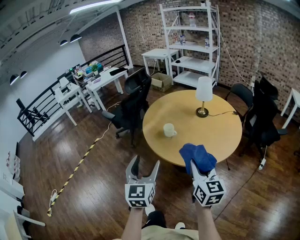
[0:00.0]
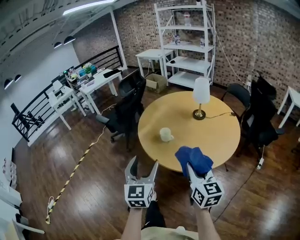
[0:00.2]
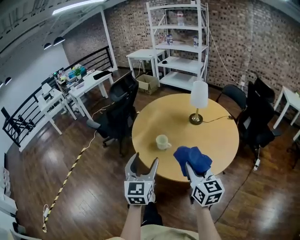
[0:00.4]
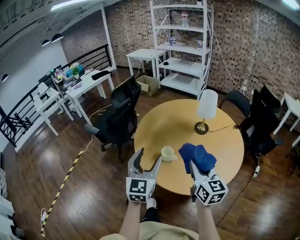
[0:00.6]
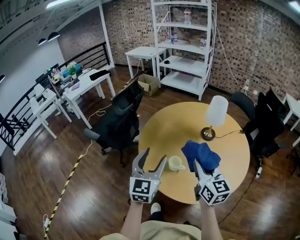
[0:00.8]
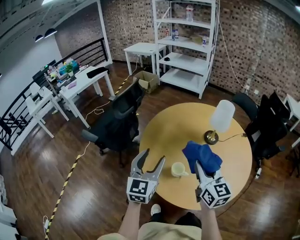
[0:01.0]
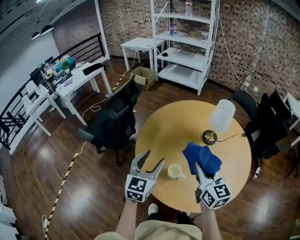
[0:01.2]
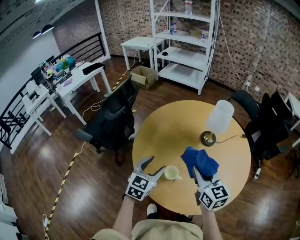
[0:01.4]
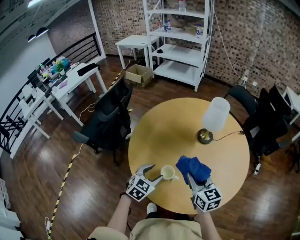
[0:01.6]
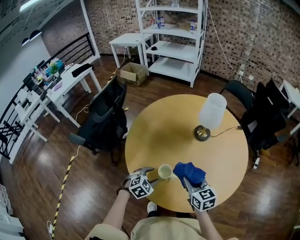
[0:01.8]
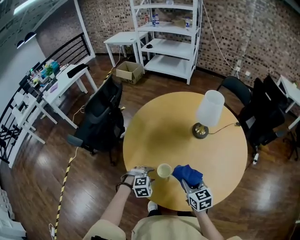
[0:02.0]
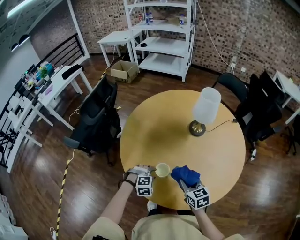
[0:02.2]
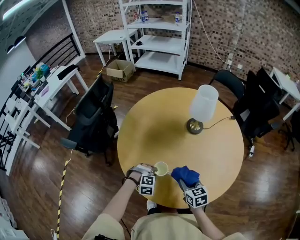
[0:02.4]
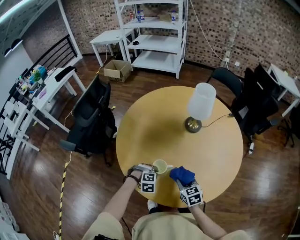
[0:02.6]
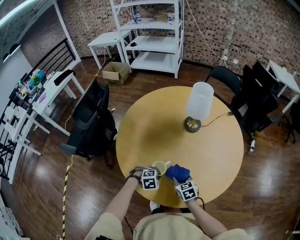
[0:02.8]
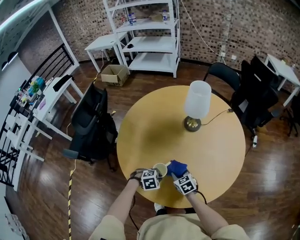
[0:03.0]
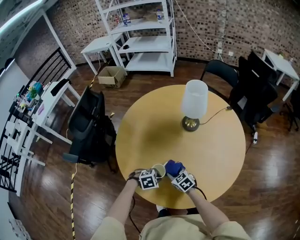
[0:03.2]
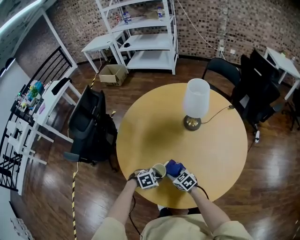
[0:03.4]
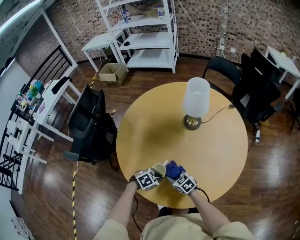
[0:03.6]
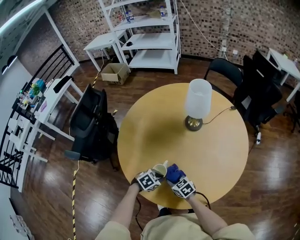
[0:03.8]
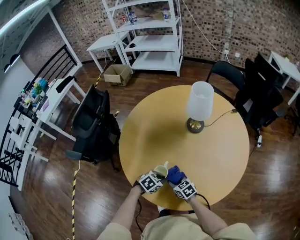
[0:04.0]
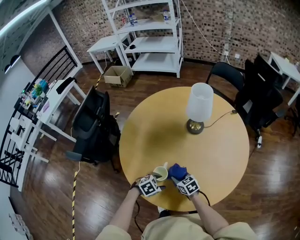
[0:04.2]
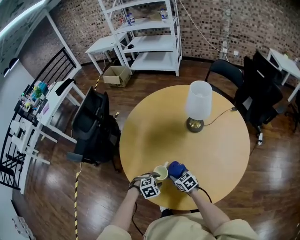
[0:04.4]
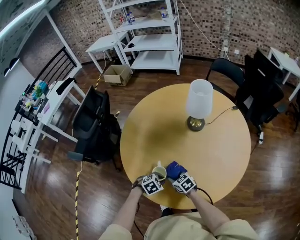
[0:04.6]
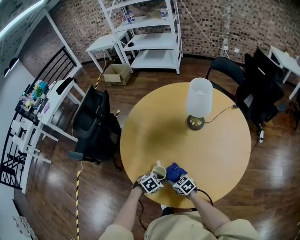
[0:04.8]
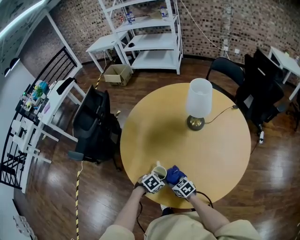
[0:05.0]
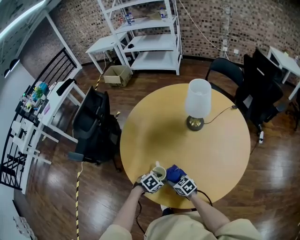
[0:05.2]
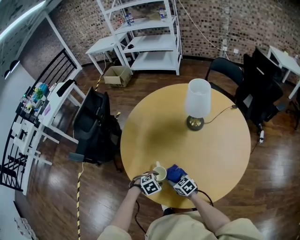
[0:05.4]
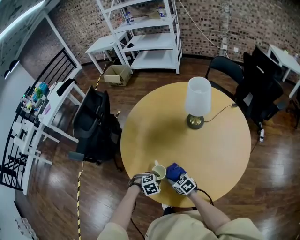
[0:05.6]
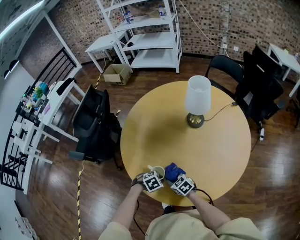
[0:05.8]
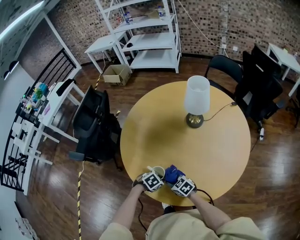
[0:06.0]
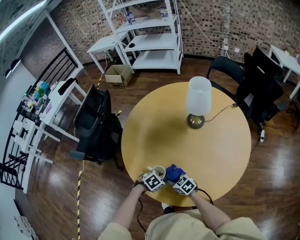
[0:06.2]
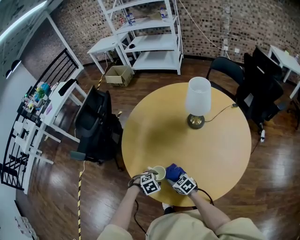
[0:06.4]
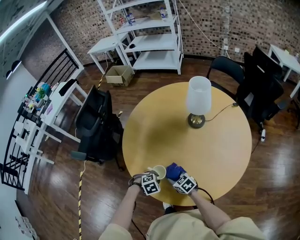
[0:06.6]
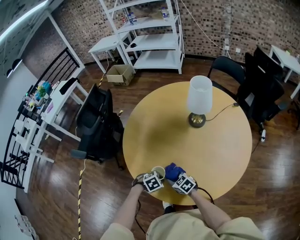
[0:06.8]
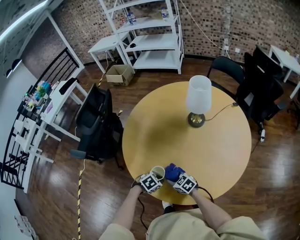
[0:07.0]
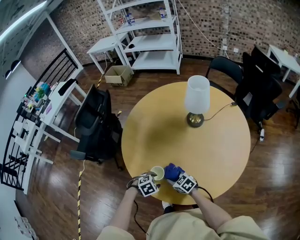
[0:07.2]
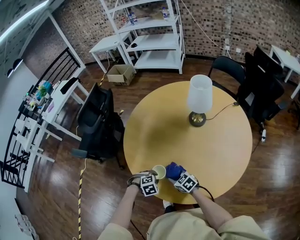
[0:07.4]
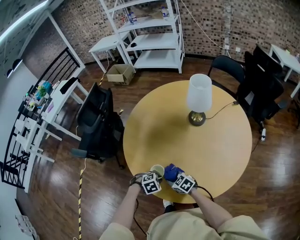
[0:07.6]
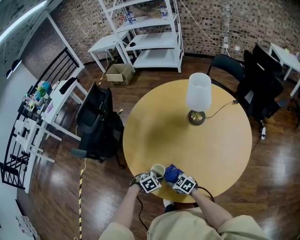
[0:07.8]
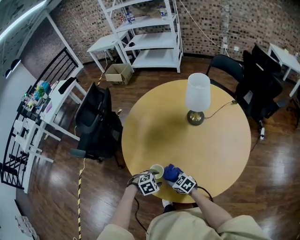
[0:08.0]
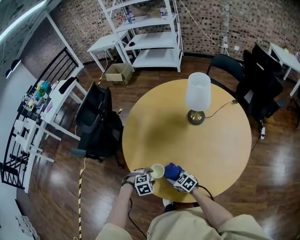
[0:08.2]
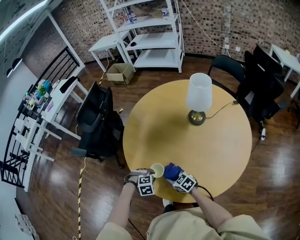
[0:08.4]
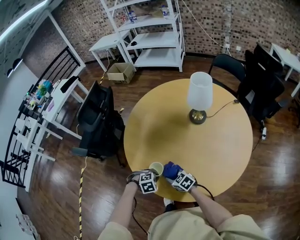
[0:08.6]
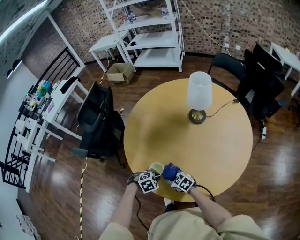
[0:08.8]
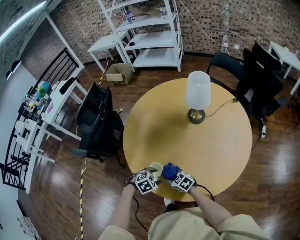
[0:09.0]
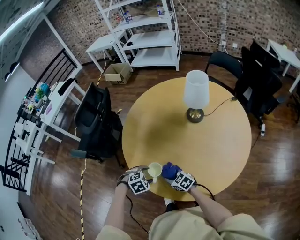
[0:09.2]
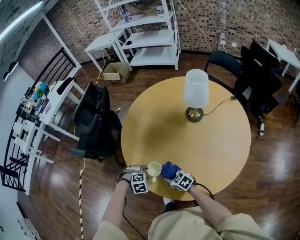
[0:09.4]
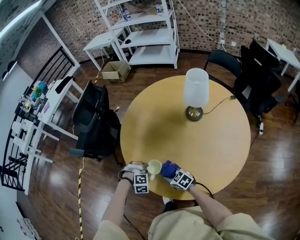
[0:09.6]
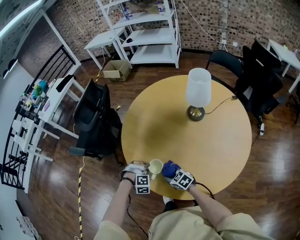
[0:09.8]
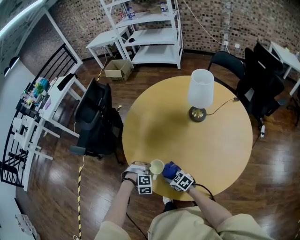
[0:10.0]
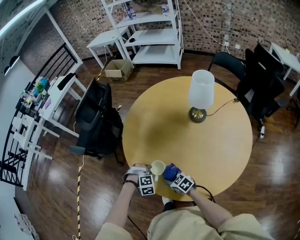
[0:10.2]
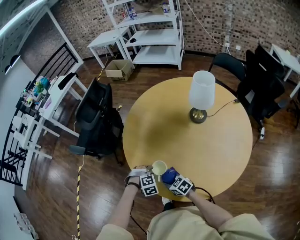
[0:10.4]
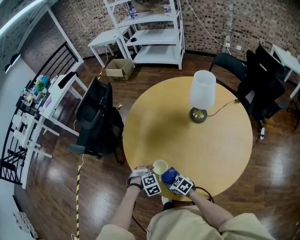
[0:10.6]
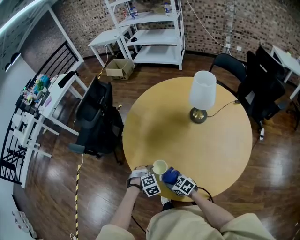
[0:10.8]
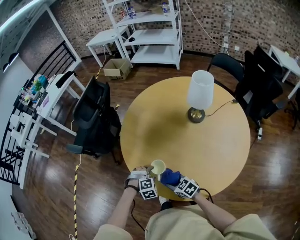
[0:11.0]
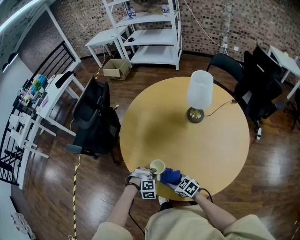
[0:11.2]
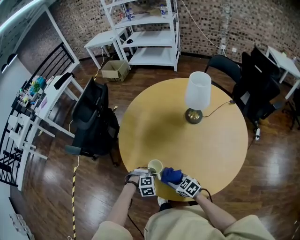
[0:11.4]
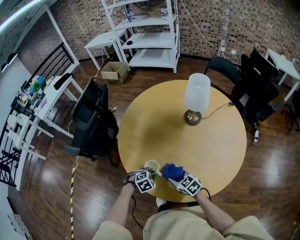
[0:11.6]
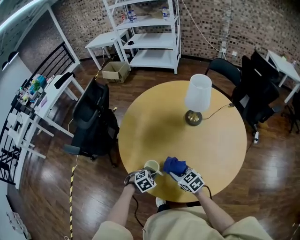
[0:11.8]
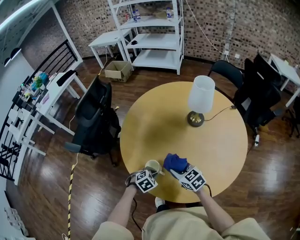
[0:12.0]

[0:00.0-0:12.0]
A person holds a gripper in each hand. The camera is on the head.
0:00.0 to 0:01.6: The left gripper goes approximately 40 cm forward and downward, and tilts its fingers roughly 30 degrees downward. Meanwhile the right gripper travels forward by approximately 35 cm.
0:01.6 to 0:03.0: The left gripper shifts about 15 cm downward, angles its fingers downward, by some 30 degrees, and closes; the right gripper moves downward, roughly 25 cm, and rotates about 30 degrees.
0:03.0 to 0:04.4: The left gripper opens its fingers.
0:04.4 to 0:06.0: The right gripper shifts by about 5 cm. The left gripper turns by about 20 degrees, and closes.
0:06.0 to 0:07.6: The left gripper rotates approximately 20 degrees, and opens, then closes once more.
0:07.6 to 0:09.0: The left gripper opens its fingers.
0:09.0 to 0:10.4: The left gripper changes place by about 5 cm, rotates some 30 degrees, and closes up.
0:10.4 to 0:12.0: The right gripper travels upward by about 10 cm; the left gripper changes its angle by about 30 degrees, and opens and closes again.

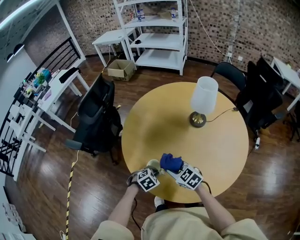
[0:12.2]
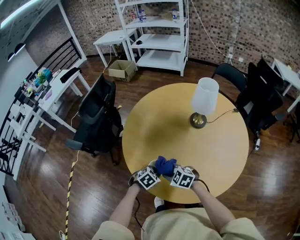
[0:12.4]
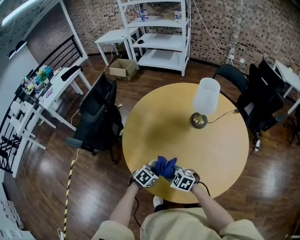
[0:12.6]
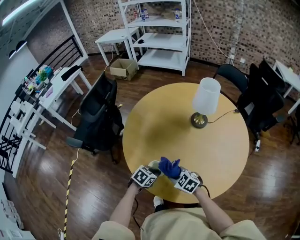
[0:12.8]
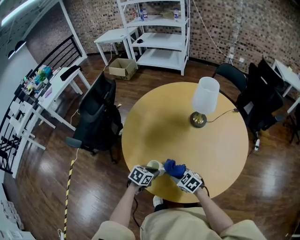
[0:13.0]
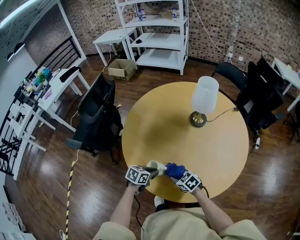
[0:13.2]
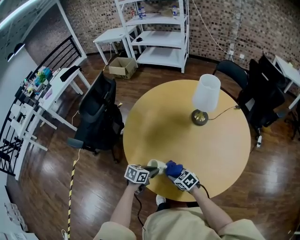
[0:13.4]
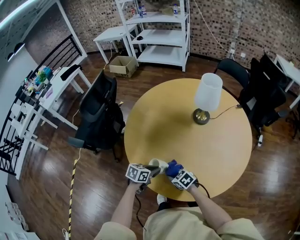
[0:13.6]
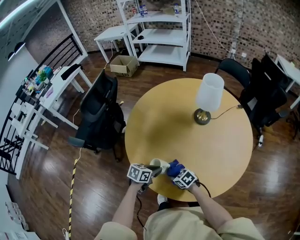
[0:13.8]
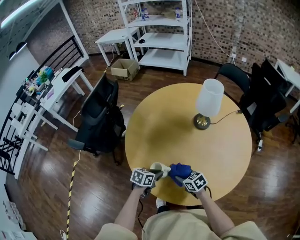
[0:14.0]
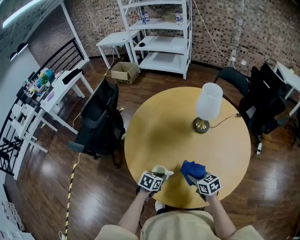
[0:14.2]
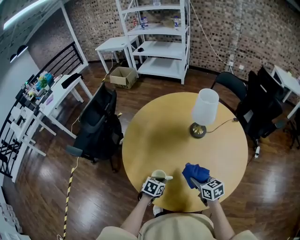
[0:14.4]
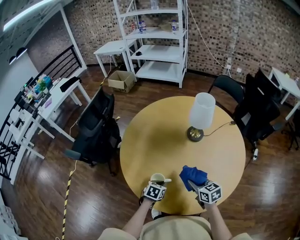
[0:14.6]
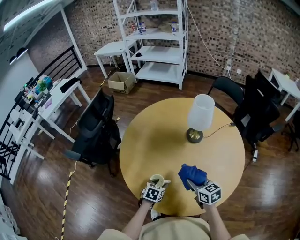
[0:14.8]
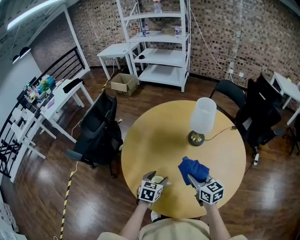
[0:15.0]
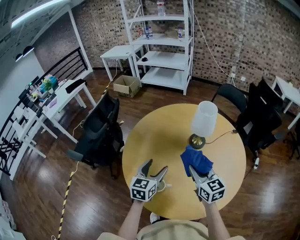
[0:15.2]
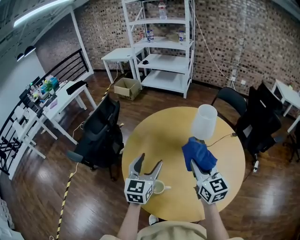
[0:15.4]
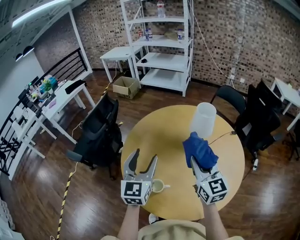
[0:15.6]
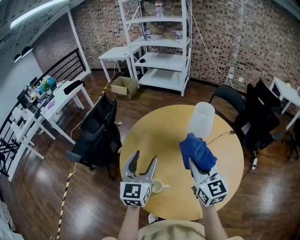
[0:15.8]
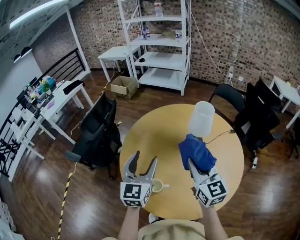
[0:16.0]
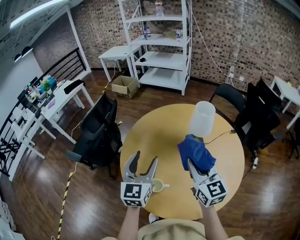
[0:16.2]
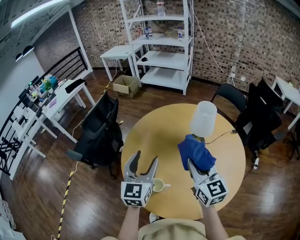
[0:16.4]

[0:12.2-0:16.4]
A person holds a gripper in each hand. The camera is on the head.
0:12.2 to 0:13.6: The right gripper heads downward, covering about 10 cm. The left gripper rotates around the line of its fingers by roughly 40 degrees, counterclockwise from behind.
0:13.6 to 0:15.0: The left gripper goes some 10 cm upward, swivels some 30 degrees, and opens up, while the right gripper shifts some 20 cm upward, and swivels approximately 40 degrees.
0:15.0 to 0:16.4: The two grippers go some 20 cm upward. The right gripper turns by about 20 degrees. The left gripper points its fingers approximately 40 degrees further upward.

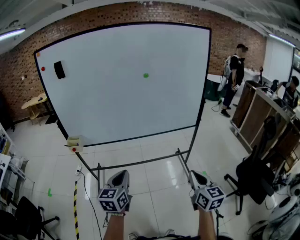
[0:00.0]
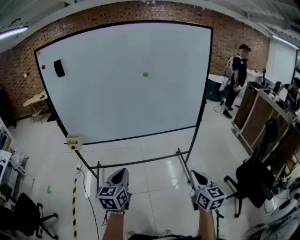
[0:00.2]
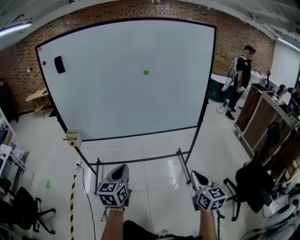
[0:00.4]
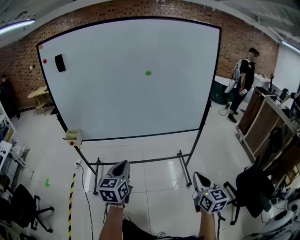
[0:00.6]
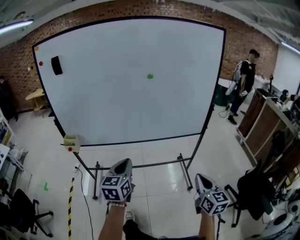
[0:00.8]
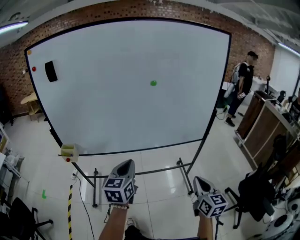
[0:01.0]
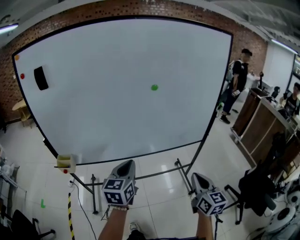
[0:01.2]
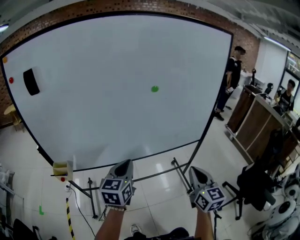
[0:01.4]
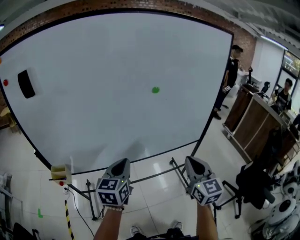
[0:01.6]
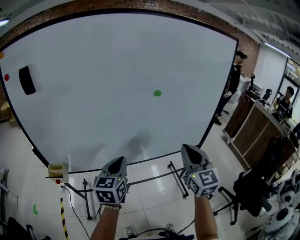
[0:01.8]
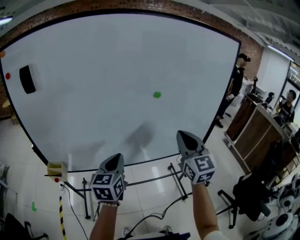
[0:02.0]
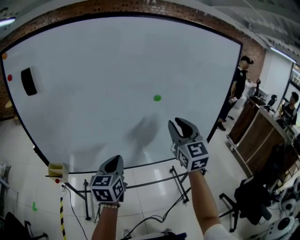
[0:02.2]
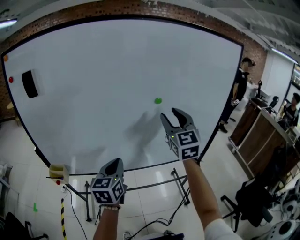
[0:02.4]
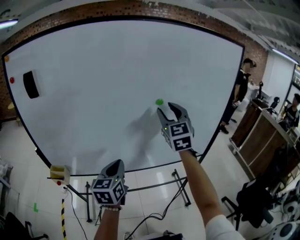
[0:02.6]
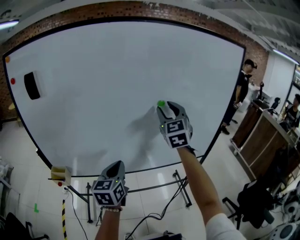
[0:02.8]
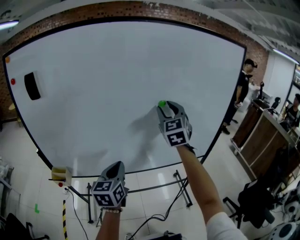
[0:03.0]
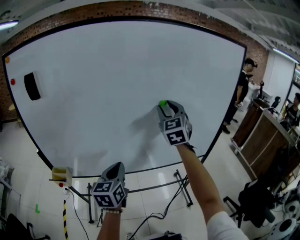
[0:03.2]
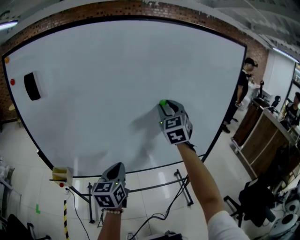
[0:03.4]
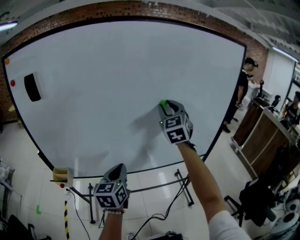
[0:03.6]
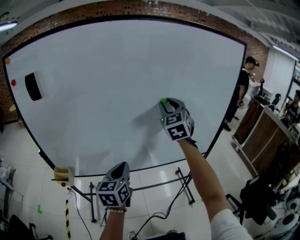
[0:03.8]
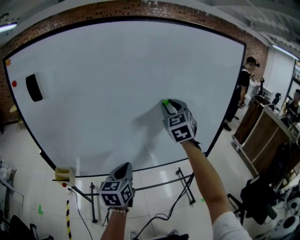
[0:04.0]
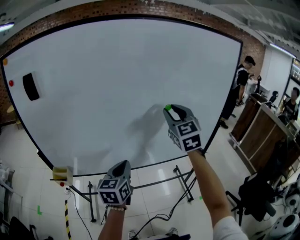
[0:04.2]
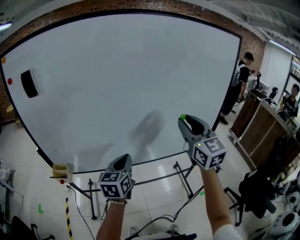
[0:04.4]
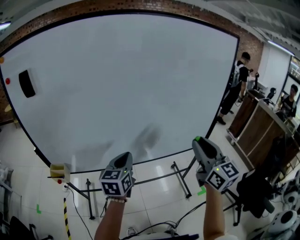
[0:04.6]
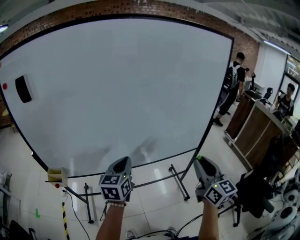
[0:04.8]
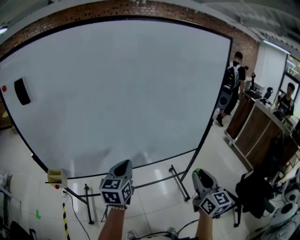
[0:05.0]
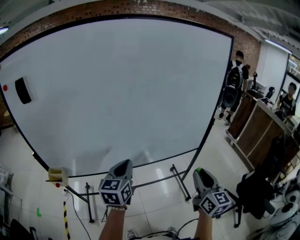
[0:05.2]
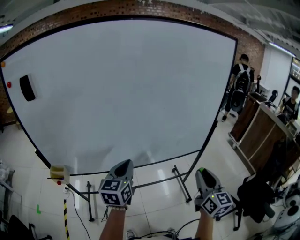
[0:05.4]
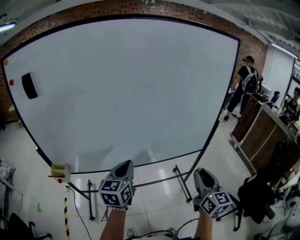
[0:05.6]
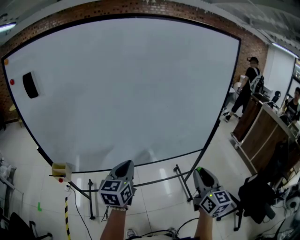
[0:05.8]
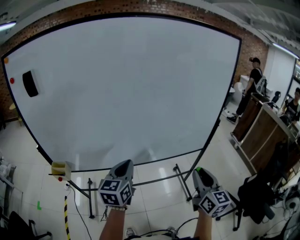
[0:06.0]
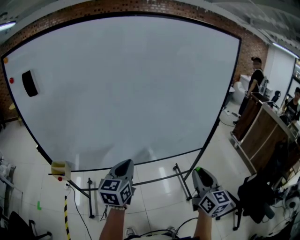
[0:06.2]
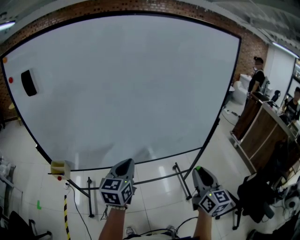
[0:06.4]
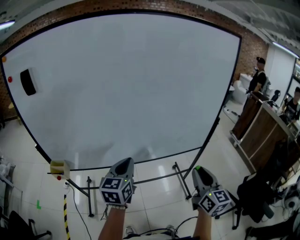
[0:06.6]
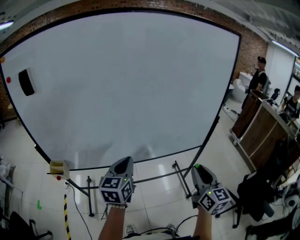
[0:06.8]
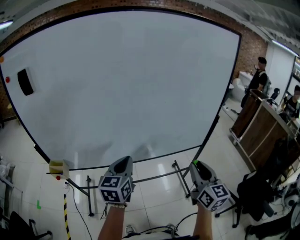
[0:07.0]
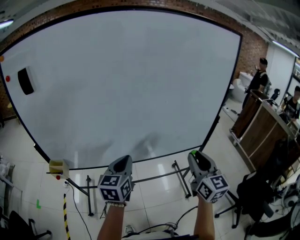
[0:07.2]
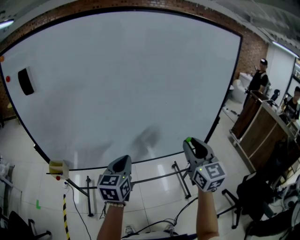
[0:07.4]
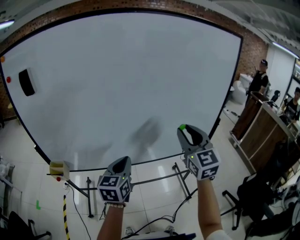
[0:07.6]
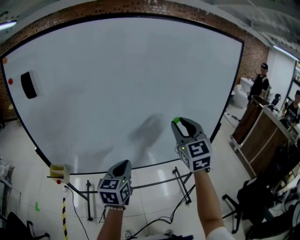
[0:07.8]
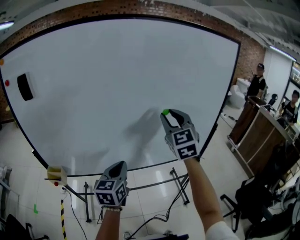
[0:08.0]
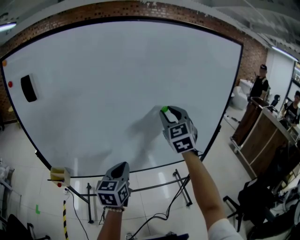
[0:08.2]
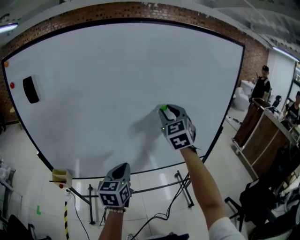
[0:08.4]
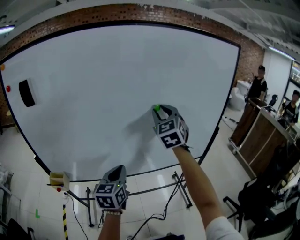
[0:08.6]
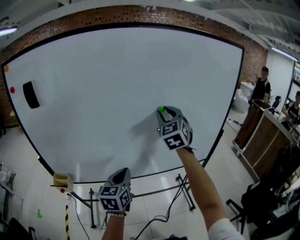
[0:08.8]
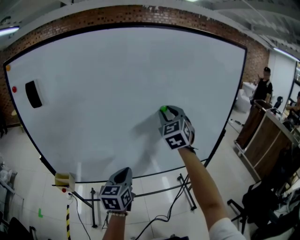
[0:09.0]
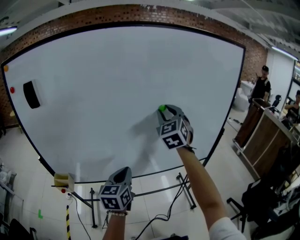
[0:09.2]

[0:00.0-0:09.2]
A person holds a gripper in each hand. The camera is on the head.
0:00.0 to 0:01.6: The two grippers go some 30 cm forward.
0:01.6 to 0:03.0: The right gripper heads forward and upward, covering roughly 30 cm, changes its angle by about 20 degrees, and opens.
0:03.0 to 0:04.6: The right gripper heads backward and to the right, covering some 25 cm, and swivels about 30 degrees.
0:04.6 to 0:06.2: The right gripper shifts approximately 10 cm downward and backward.
0:06.2 to 0:07.6: The right gripper travels upward, forward and to the left by about 20 cm, and changes its angle by roughly 30 degrees.
0:07.6 to 0:09.2: The right gripper moves forward and to the left, approximately 20 cm, and rotates some 20 degrees.
